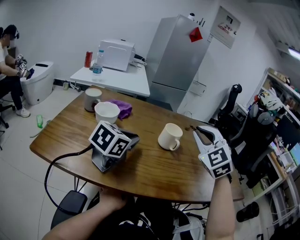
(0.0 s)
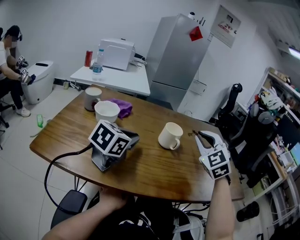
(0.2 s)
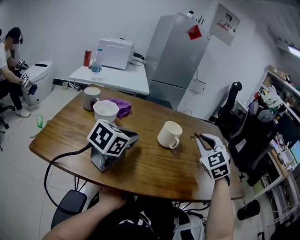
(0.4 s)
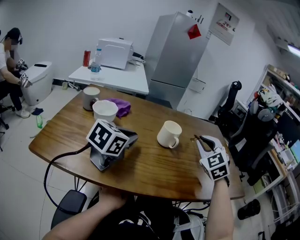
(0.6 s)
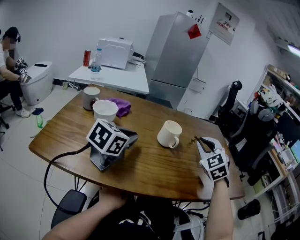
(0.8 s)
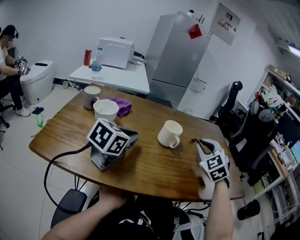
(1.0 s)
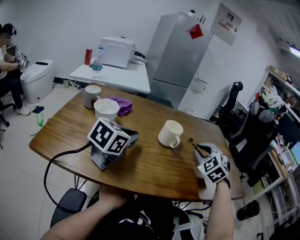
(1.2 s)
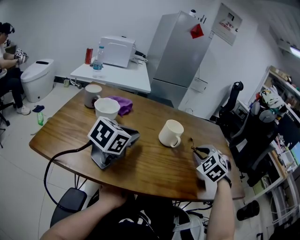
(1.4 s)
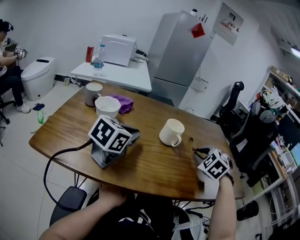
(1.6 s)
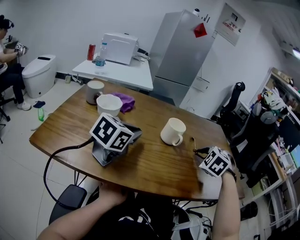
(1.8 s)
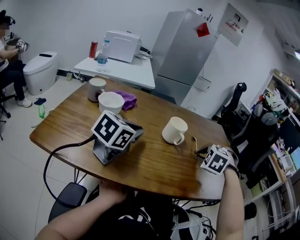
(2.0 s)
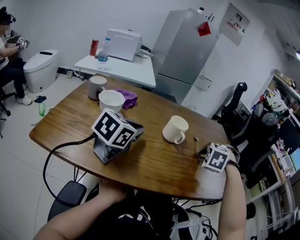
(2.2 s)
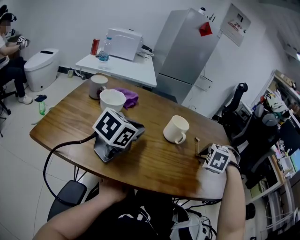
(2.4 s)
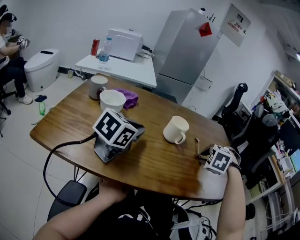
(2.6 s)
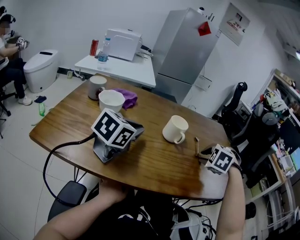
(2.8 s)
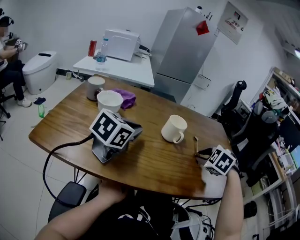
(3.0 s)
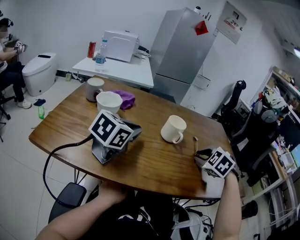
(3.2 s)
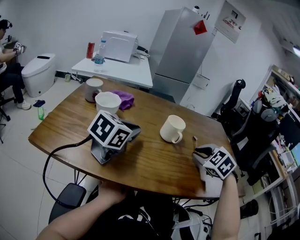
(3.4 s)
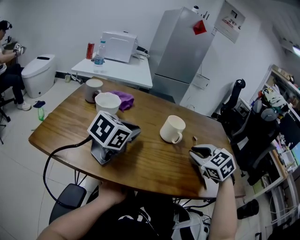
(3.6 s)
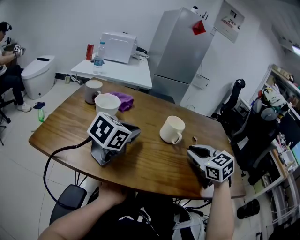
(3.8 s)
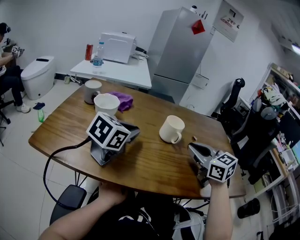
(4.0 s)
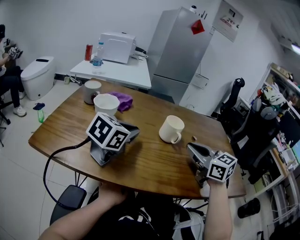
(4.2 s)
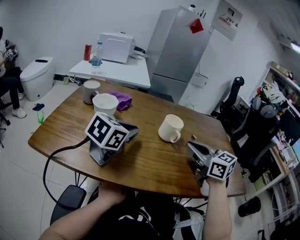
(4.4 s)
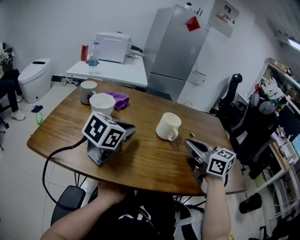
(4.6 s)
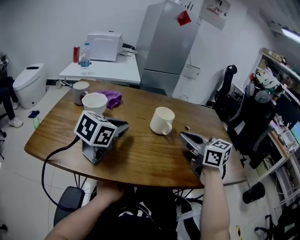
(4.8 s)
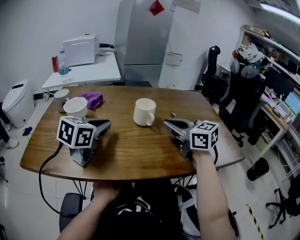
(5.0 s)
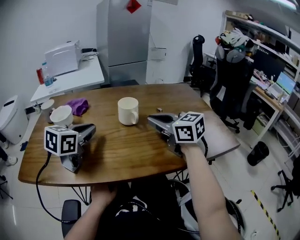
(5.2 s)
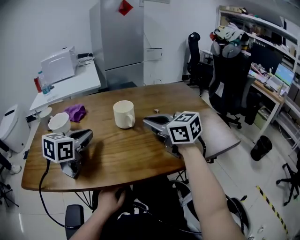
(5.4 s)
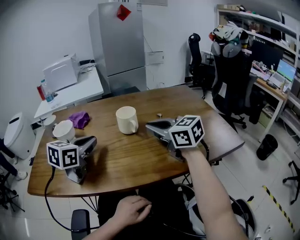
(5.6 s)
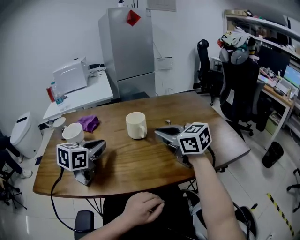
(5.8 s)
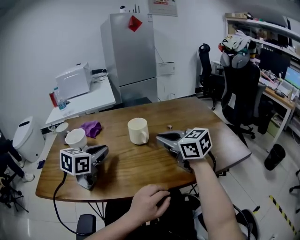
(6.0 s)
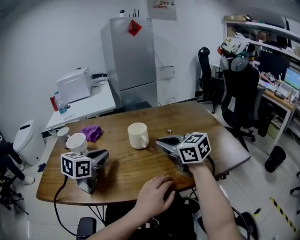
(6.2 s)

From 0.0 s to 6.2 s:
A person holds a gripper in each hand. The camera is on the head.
From 0.0 s to 1.6 s: The right gripper heads downward and to the right, covering some 15 cm, and tips its fingers downward by about 30 degrees.
From 3.2 s to 4.6 s: The right gripper goes about 10 cm upward and to the left, and tips its fingers upward by some 40 degrees.
From 4.6 s to 6.2 s: The grippers stay close to where they were, moving slightly.

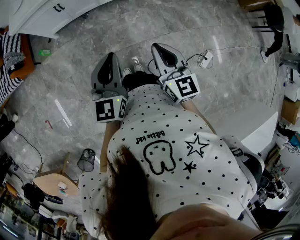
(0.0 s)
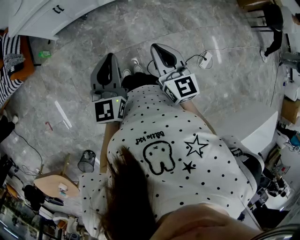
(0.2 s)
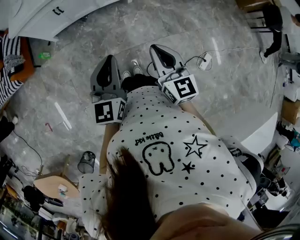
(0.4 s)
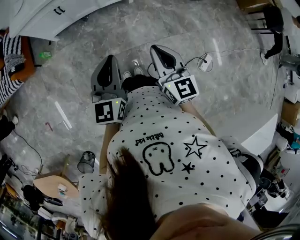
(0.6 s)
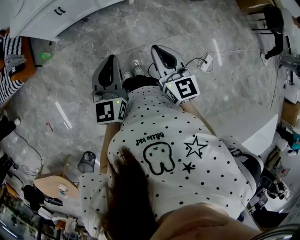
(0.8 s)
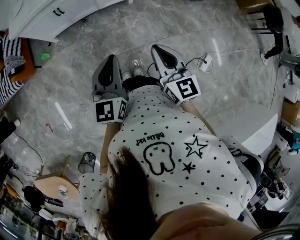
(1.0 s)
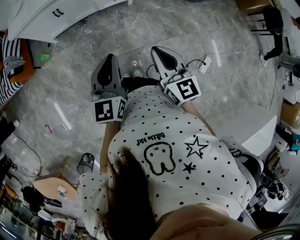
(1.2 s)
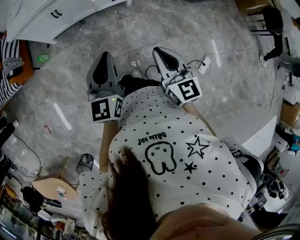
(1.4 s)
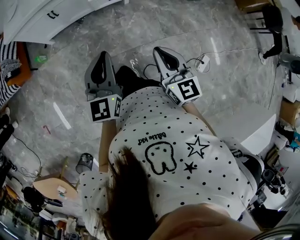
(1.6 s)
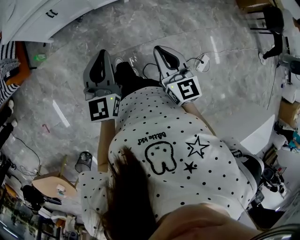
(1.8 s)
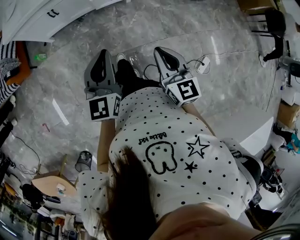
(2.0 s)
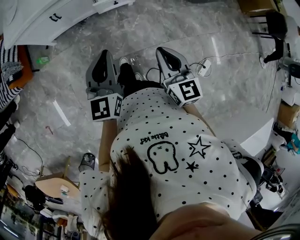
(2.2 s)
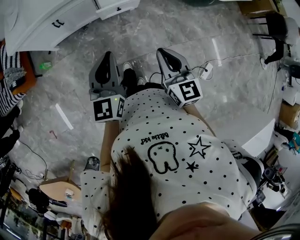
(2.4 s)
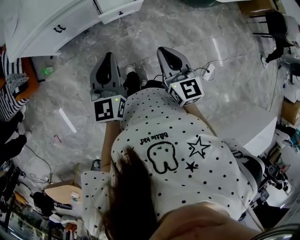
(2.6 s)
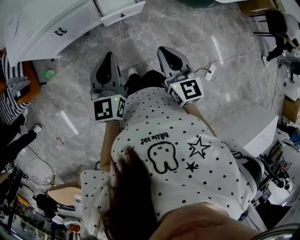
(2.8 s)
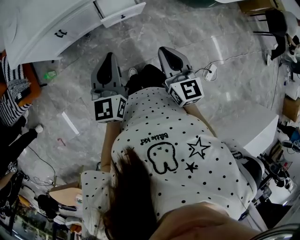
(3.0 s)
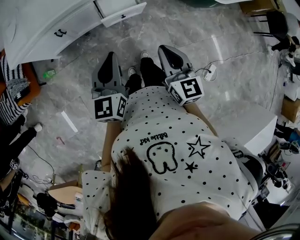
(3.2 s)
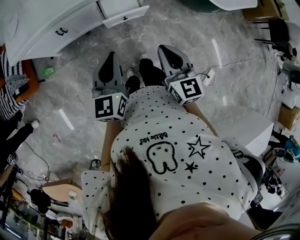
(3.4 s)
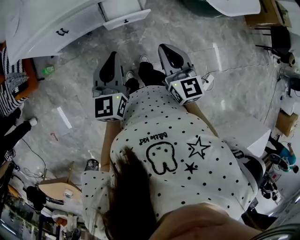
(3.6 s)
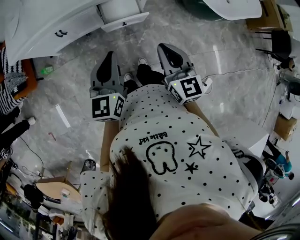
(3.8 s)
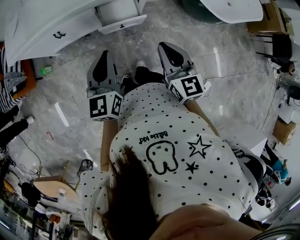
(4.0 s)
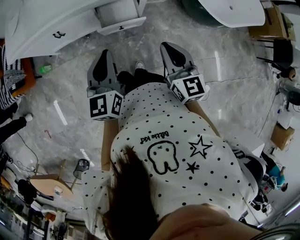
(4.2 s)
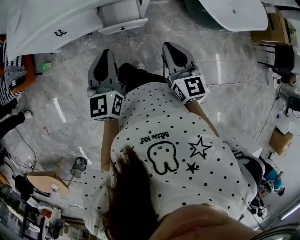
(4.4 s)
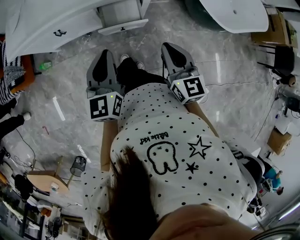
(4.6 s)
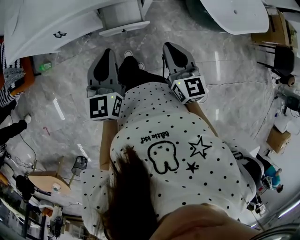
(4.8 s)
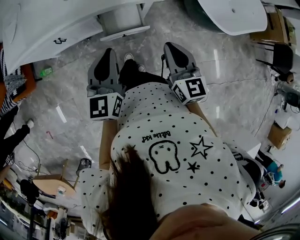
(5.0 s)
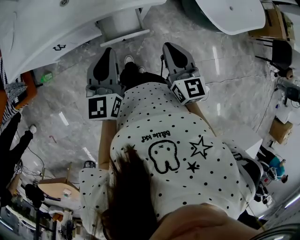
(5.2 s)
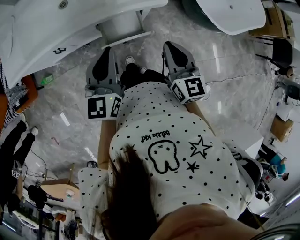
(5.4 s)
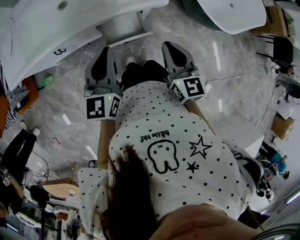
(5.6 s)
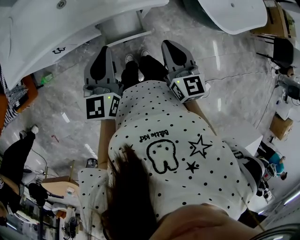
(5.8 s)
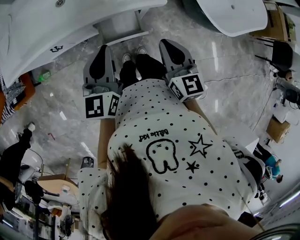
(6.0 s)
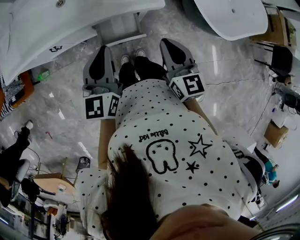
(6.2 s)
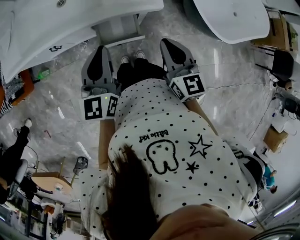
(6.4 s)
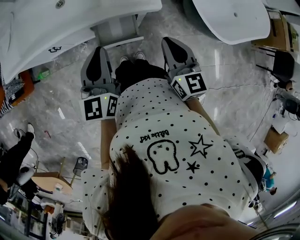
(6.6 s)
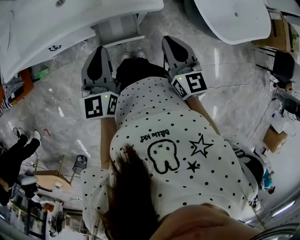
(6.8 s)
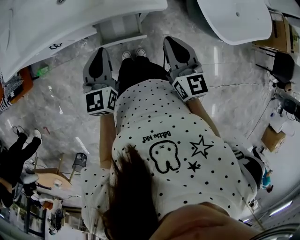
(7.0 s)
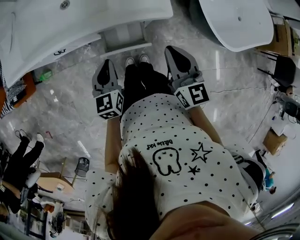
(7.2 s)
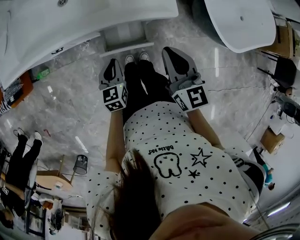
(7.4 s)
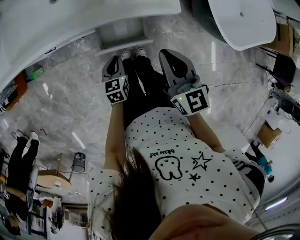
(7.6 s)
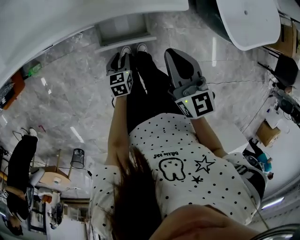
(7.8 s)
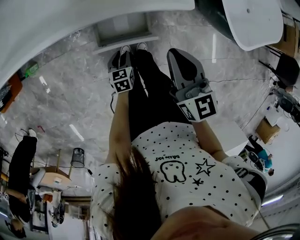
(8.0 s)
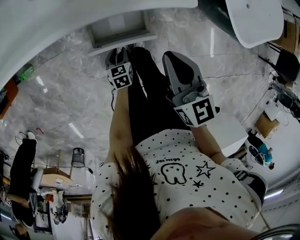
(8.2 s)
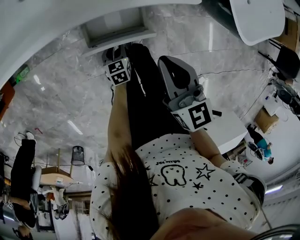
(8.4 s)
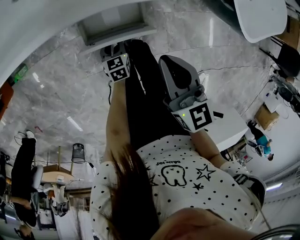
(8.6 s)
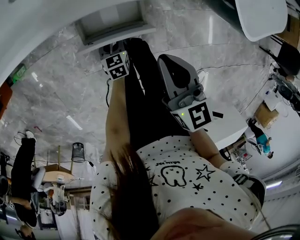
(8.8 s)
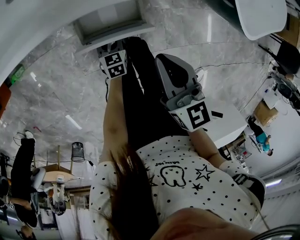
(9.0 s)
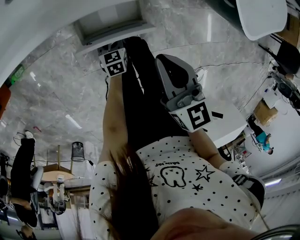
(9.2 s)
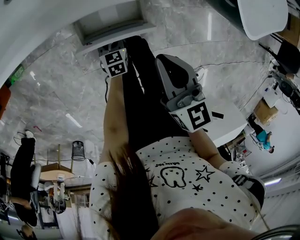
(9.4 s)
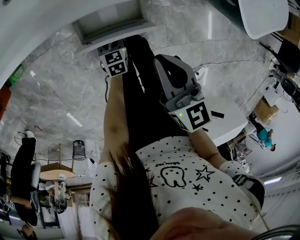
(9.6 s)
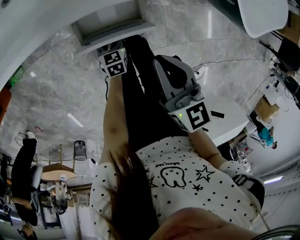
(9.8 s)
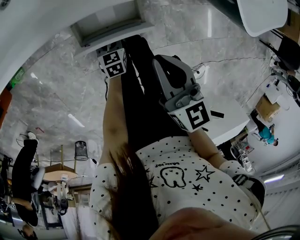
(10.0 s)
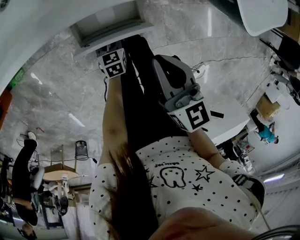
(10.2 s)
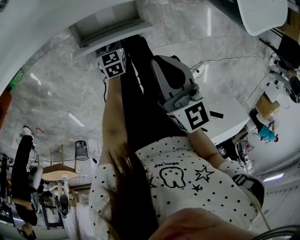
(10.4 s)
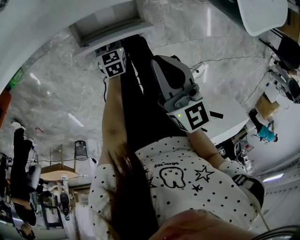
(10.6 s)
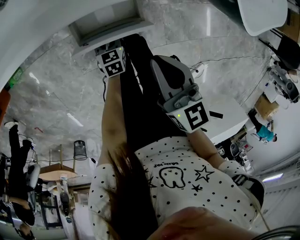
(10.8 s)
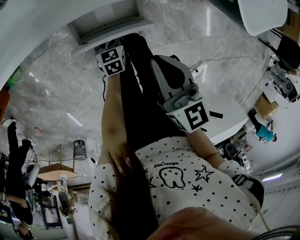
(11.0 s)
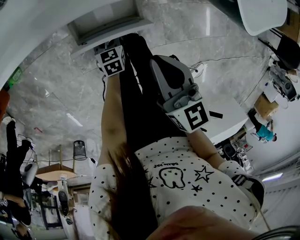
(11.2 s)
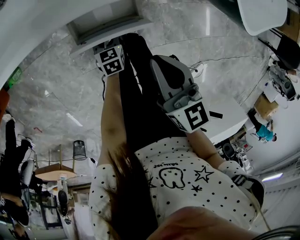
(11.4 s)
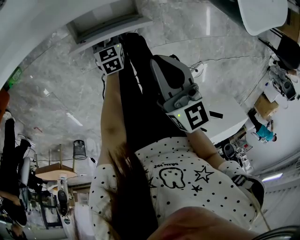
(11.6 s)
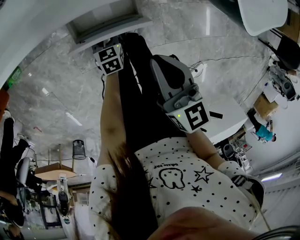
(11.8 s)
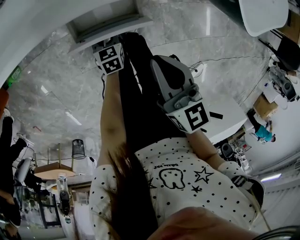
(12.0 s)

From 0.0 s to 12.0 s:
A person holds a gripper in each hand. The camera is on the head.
From 0.0 s to 1.6 s: The right gripper moves about 5 cm. The left gripper travels forward by some 5 cm.
From 1.6 s to 3.0 s: The two grippers go roughly 20 cm forward.
From 3.0 s to 4.4 s: The two grippers go some 15 cm forward and to the right.
From 4.4 s to 6.0 s: The grippers both shift forward by about 15 cm.
From 6.0 s to 7.6 s: The right gripper goes roughly 5 cm downward and forward; the left gripper moves downward, approximately 30 cm, and tips its fingers downward by roughly 30 degrees.
From 7.6 s to 9.0 s: The left gripper shifts roughly 20 cm downward, and opens. Meanwhile the right gripper shifts some 10 cm downward.
From 9.0 s to 10.4 s: There are only small adjustments of the grippers.
From 10.4 s to 12.0 s: The two grippers keep their place.

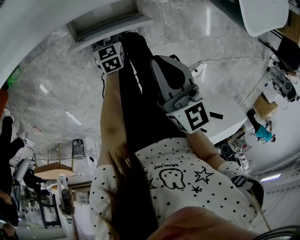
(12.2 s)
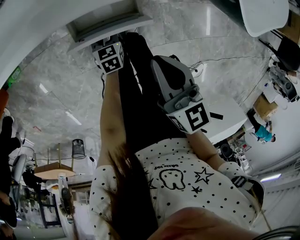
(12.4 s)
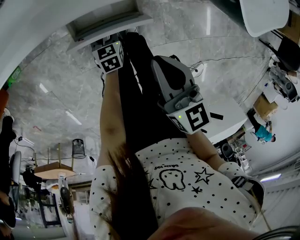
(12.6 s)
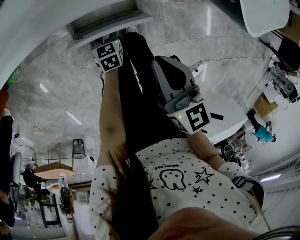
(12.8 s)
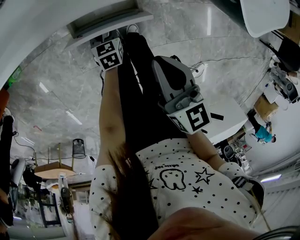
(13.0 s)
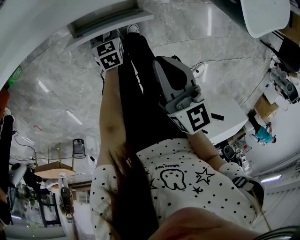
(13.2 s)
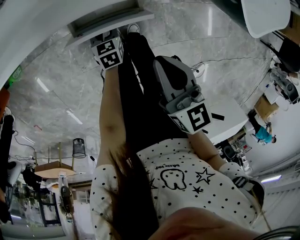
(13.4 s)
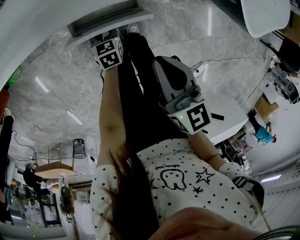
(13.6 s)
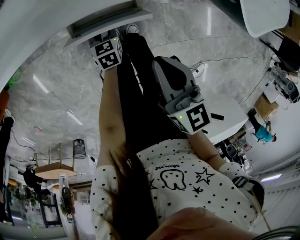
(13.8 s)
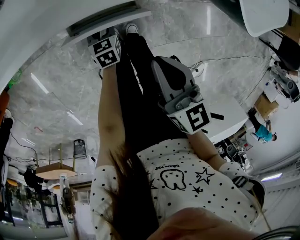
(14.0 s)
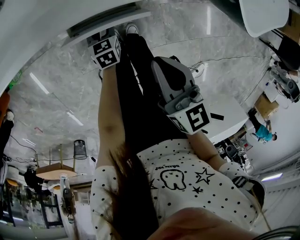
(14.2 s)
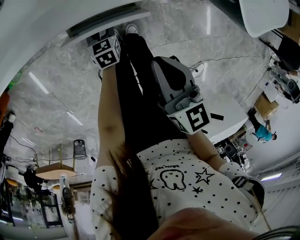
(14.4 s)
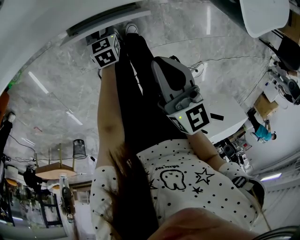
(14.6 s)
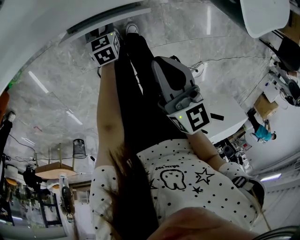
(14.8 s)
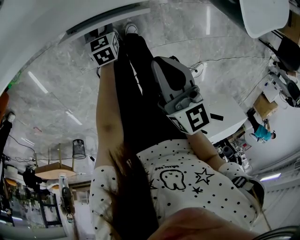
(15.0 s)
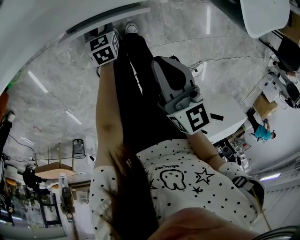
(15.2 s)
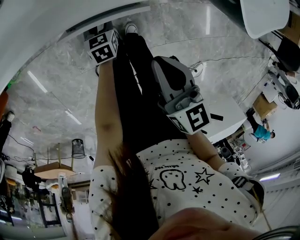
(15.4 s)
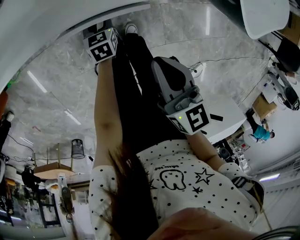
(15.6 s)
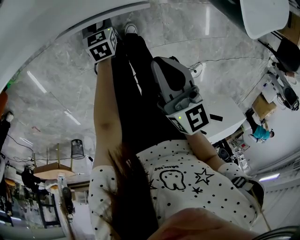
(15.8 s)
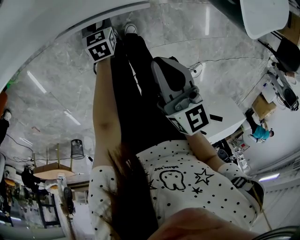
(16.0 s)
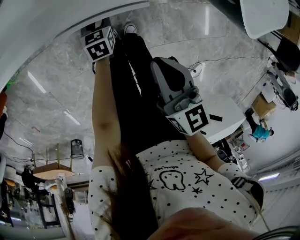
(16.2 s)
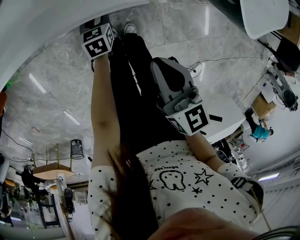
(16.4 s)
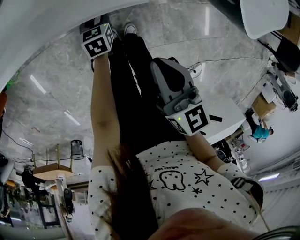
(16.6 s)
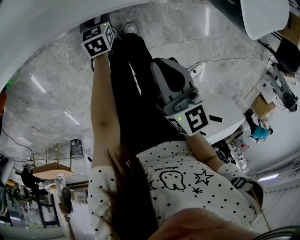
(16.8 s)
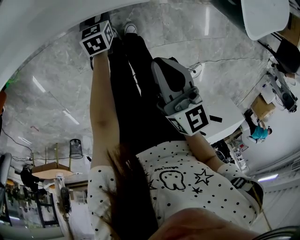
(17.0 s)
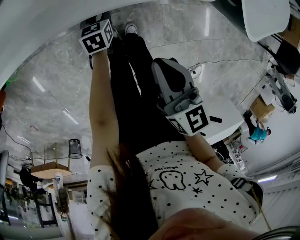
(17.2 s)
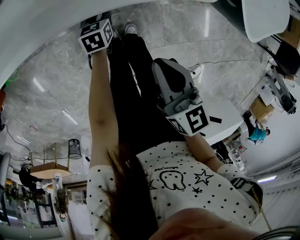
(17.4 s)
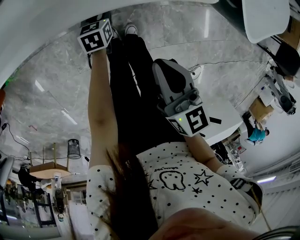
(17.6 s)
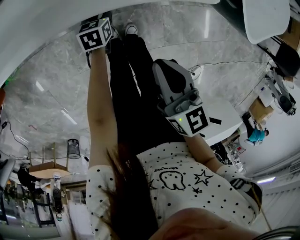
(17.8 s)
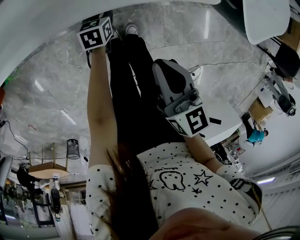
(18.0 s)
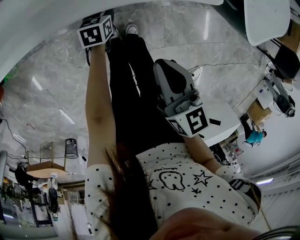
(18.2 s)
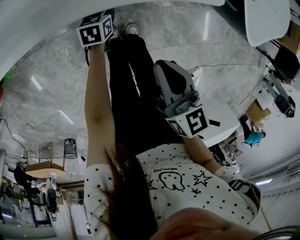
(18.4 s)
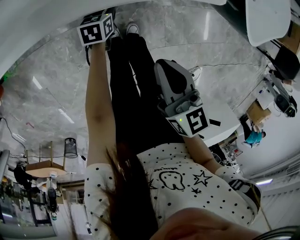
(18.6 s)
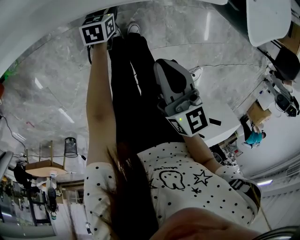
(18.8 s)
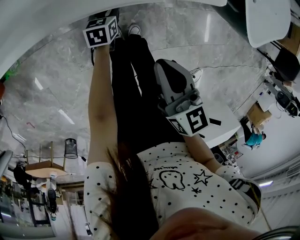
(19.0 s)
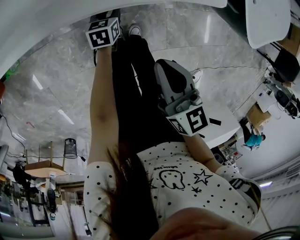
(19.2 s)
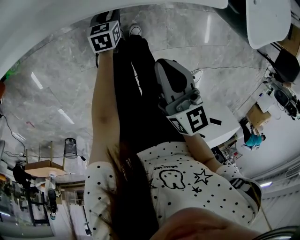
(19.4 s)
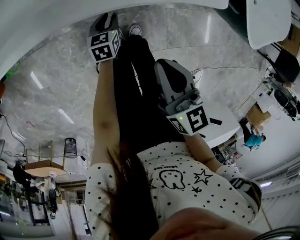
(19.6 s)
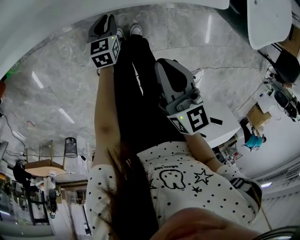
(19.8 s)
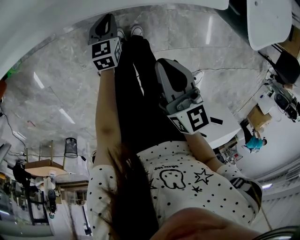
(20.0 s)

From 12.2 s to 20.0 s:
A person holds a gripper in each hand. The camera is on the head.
From 12.2 s to 15.4 s: The grippers move only a little.
From 15.4 s to 18.4 s: The grippers stay close to where they were, moving slightly.
From 18.4 s to 20.0 s: The left gripper heads upward, covering roughly 5 cm, and closes up.
